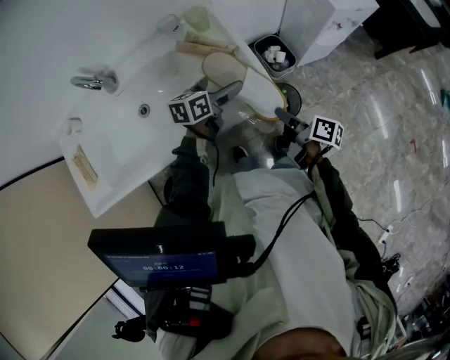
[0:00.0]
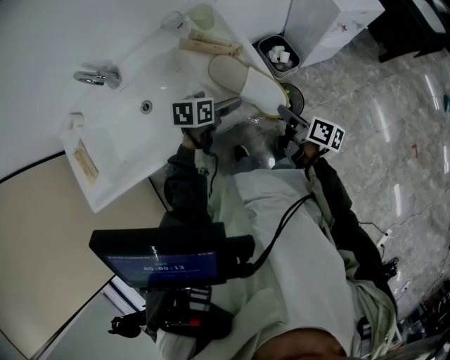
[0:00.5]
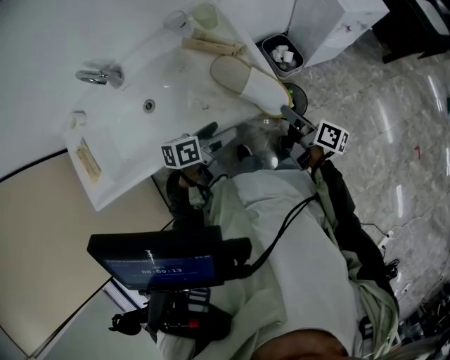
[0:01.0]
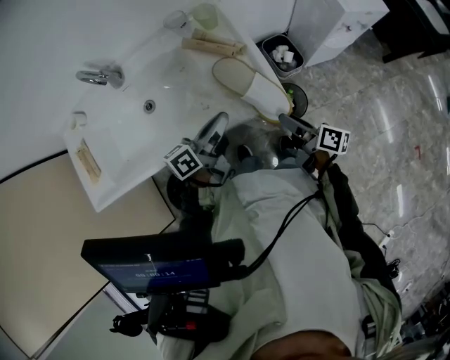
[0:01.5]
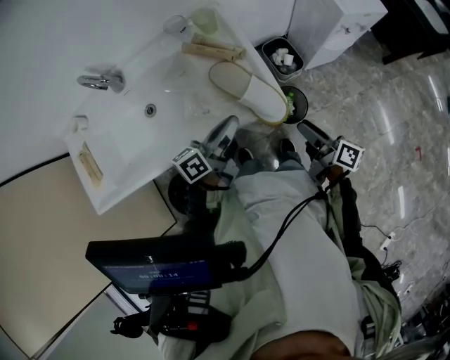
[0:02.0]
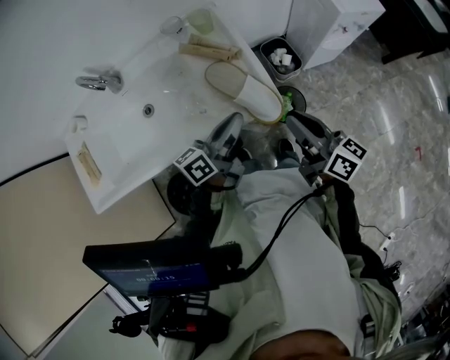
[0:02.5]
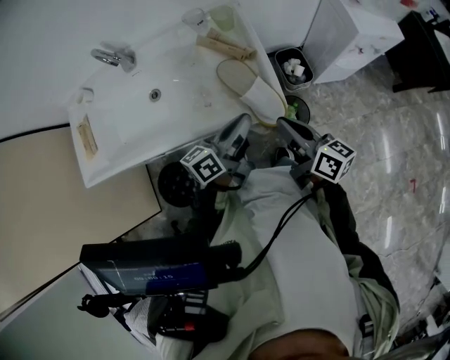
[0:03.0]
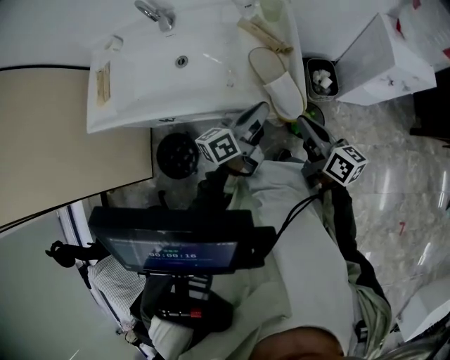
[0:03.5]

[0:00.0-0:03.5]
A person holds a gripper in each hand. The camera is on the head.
0:00.0 to 0:02.0: The right gripper changes place by about 5 cm, and opens its fingers. The left gripper moves backward and upward, about 15 cm, rotates some 30 degrees, and closes up.
0:02.0 to 0:03.5: The left gripper swivels approximately 20 degrees, while the right gripper travels upward and to the left by roughly 10 cm, turns by about 30 degrees, and closes its fingers.

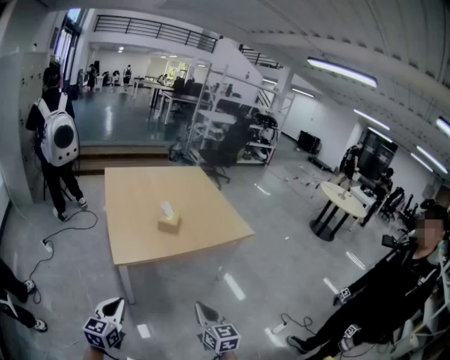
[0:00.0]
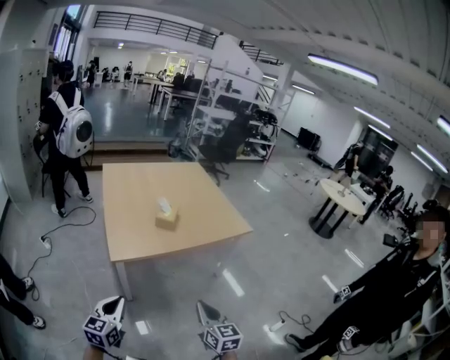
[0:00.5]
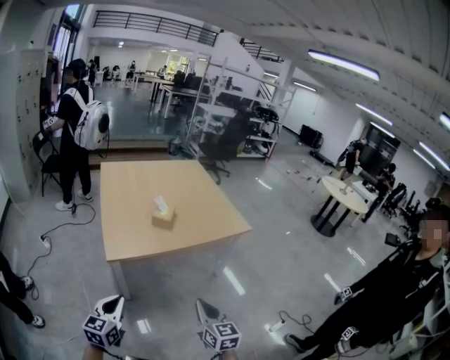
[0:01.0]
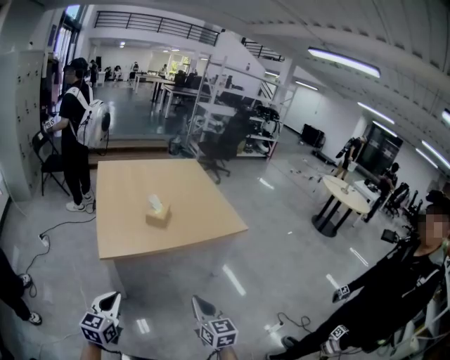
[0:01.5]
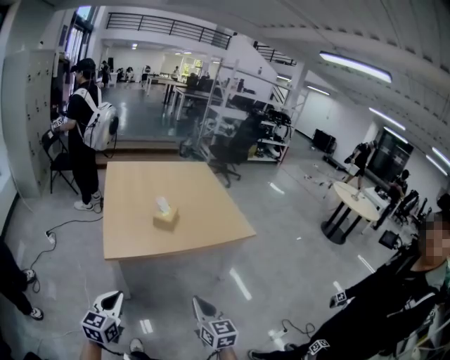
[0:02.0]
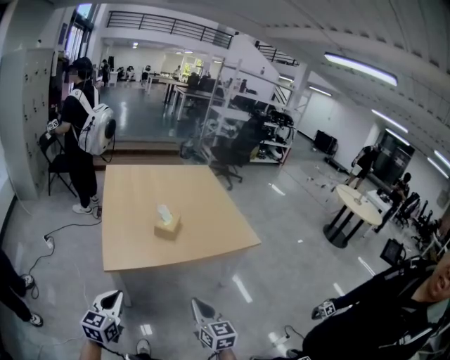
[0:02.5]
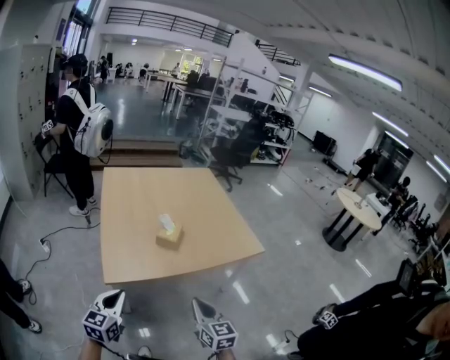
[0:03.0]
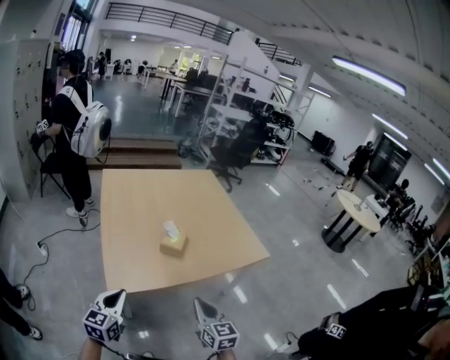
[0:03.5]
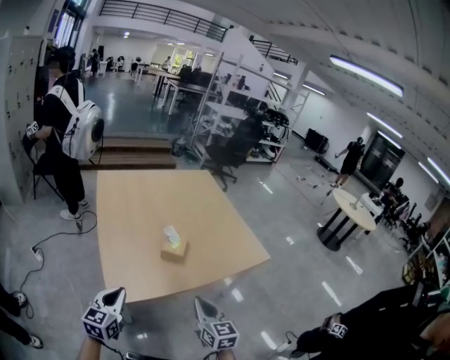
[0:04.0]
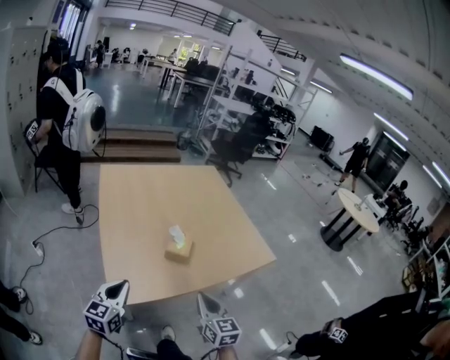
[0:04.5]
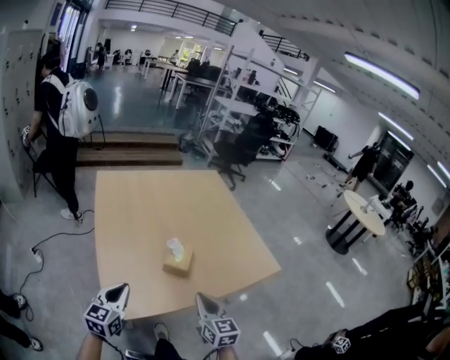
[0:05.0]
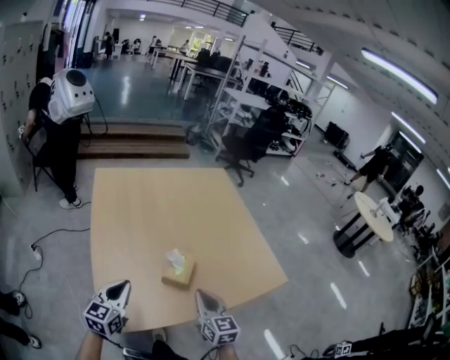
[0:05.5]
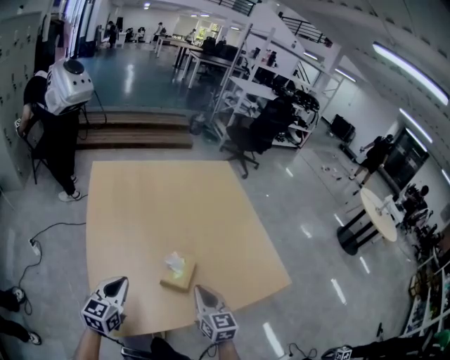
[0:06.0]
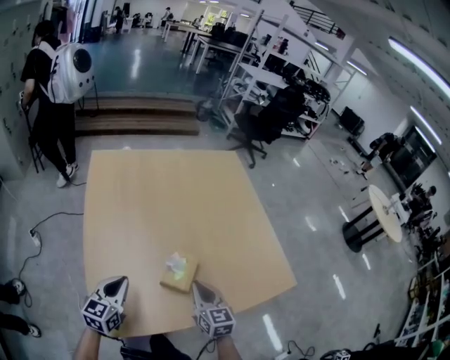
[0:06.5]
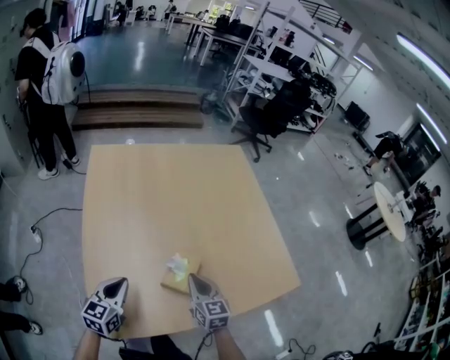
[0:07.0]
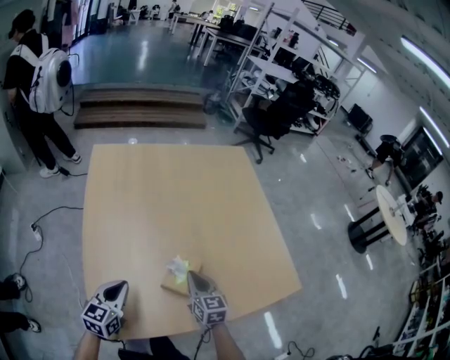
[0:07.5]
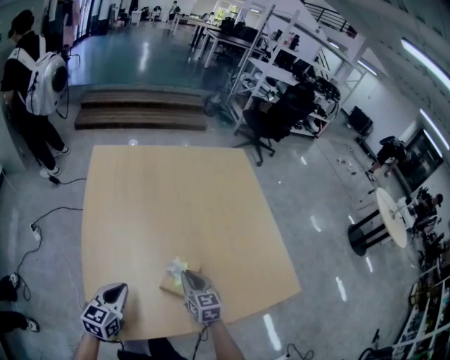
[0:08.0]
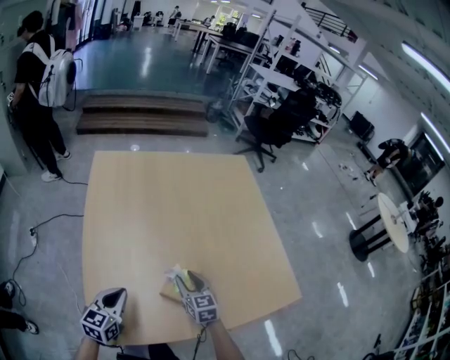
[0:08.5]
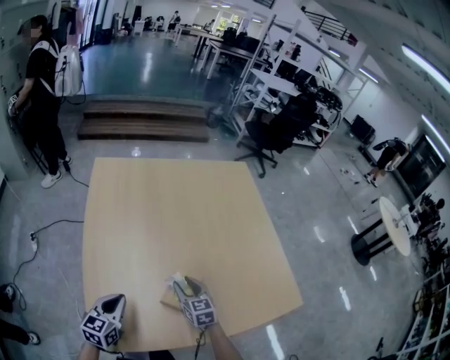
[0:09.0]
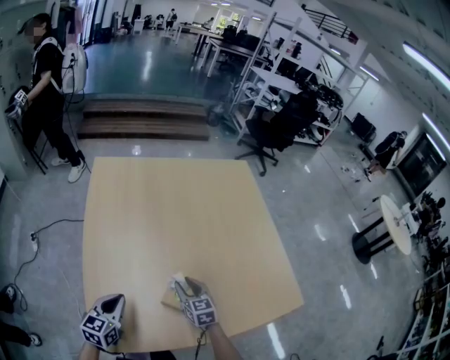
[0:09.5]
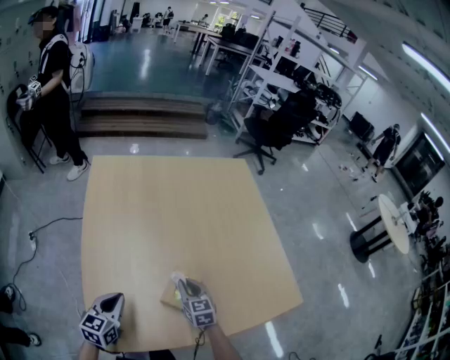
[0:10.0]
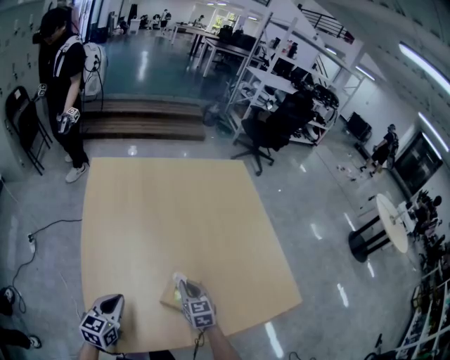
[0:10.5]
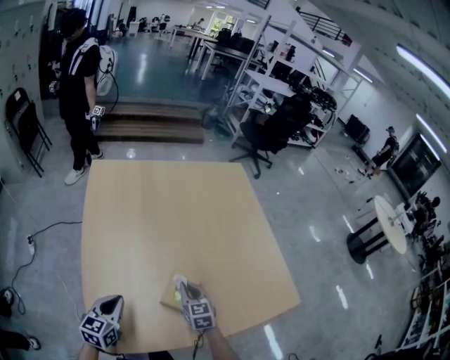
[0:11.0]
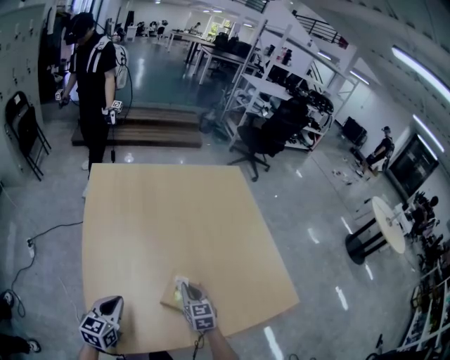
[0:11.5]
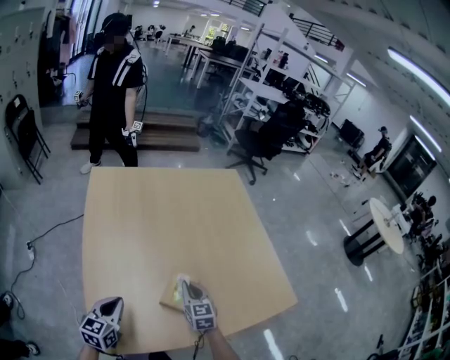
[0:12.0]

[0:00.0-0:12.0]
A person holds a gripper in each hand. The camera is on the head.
0:00.0 to 0:02.0: The two grippers go roughly 5 cm to the right.
0:02.0 to 0:04.0: The left gripper heads forward, covering about 25 cm. Meanwhile the right gripper shifts some 25 cm forward and to the left.
0:04.0 to 0:06.0: Both grippers move forward, about 25 cm.
0:06.0 to 0:08.0: The left gripper heads downward, covering some 5 cm, while the right gripper is displaced downward and forward by about 15 cm.
0:08.0 to 0:10.0: The right gripper opens and closes again.
0:10.0 to 0:12.0: The grippers stay close to where they were, moving slightly.

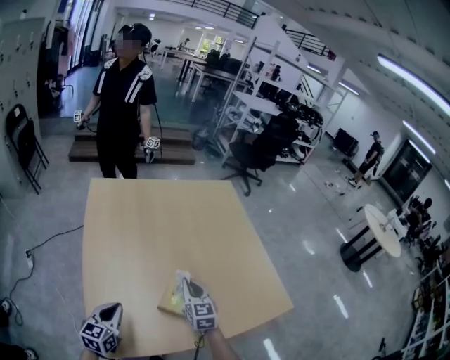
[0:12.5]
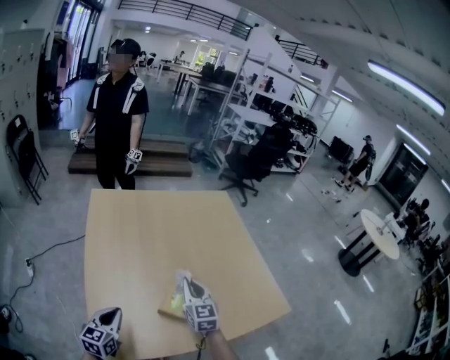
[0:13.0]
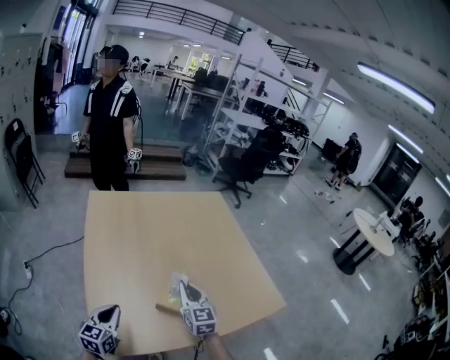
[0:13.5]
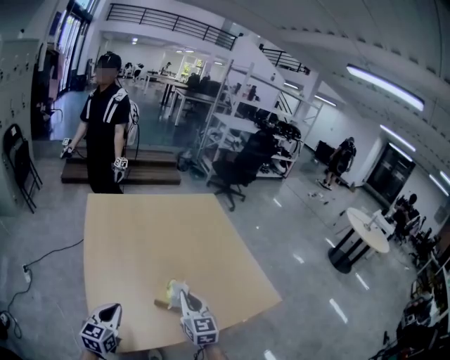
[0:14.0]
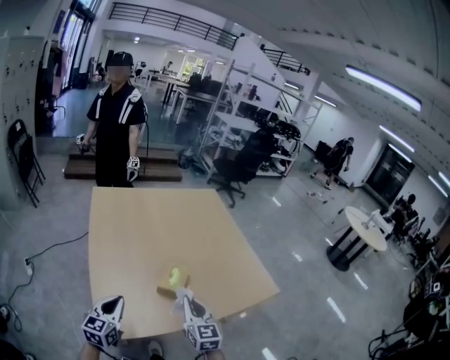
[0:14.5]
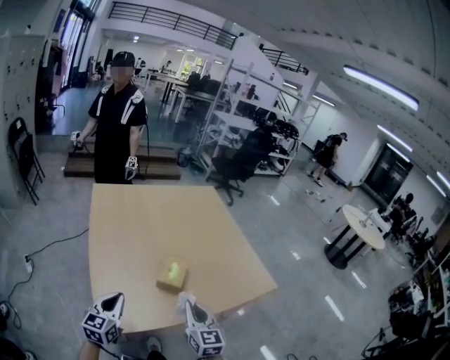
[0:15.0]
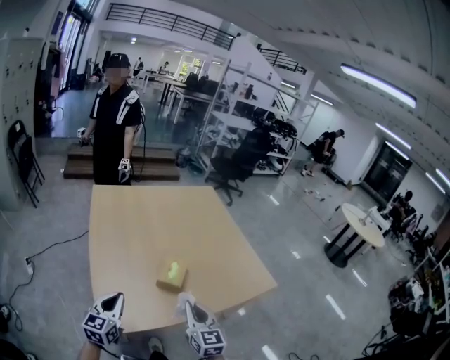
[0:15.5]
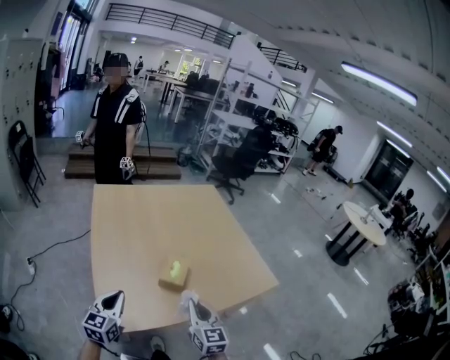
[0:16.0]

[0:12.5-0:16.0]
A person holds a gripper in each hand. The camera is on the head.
0:12.5 to 0:14.5: The right gripper moves backward, some 20 cm. Meanwhile the left gripper moves backward and upward, approximately 10 cm.
0:14.5 to 0:16.0: The right gripper shifts by about 5 cm.

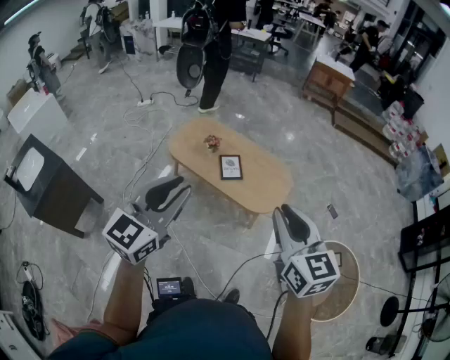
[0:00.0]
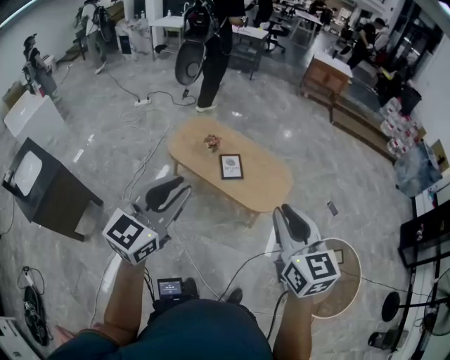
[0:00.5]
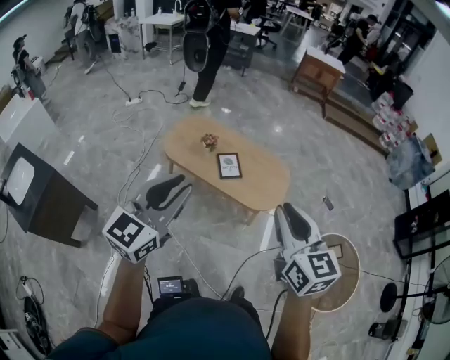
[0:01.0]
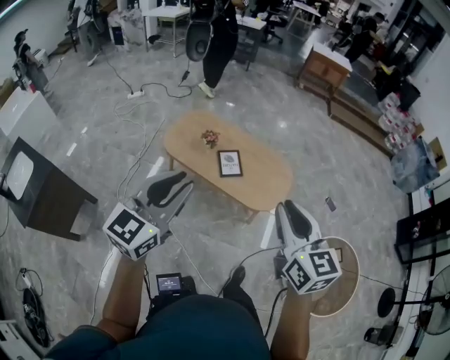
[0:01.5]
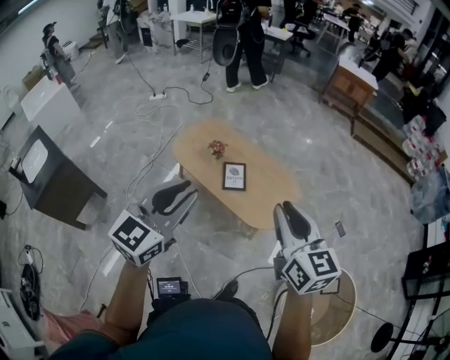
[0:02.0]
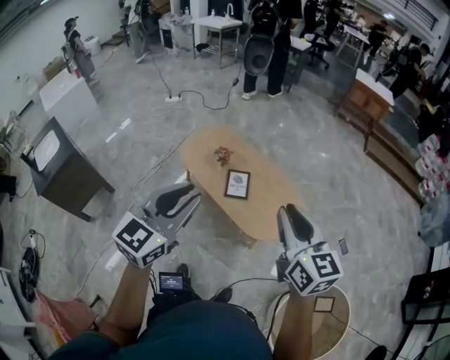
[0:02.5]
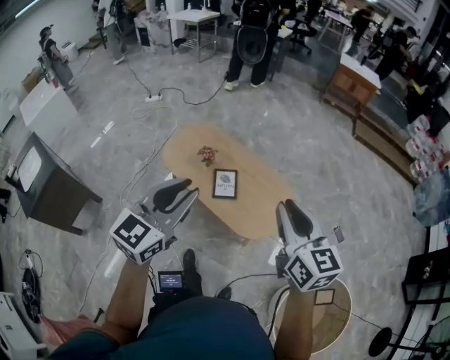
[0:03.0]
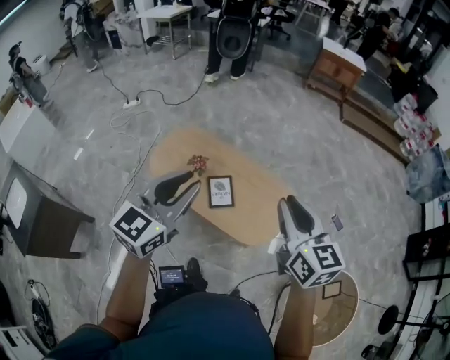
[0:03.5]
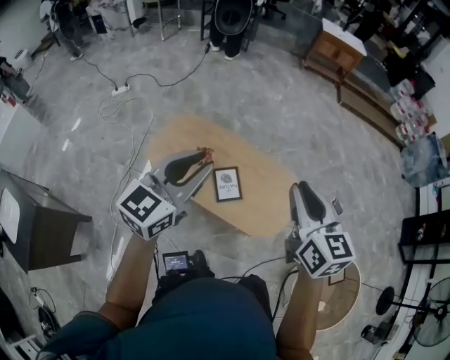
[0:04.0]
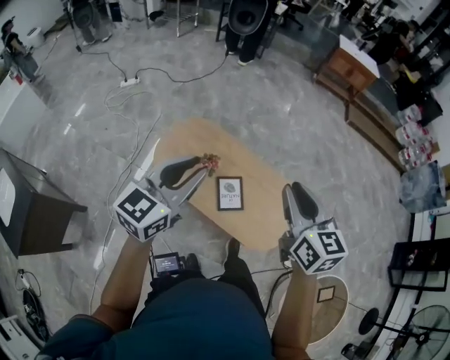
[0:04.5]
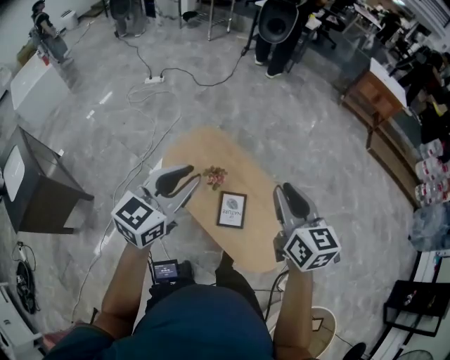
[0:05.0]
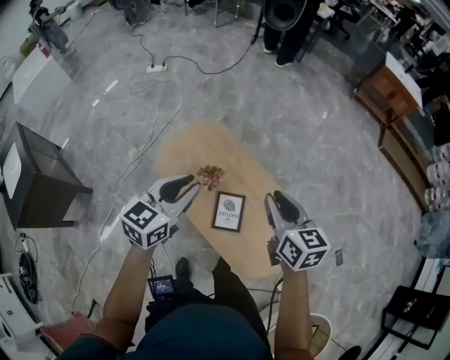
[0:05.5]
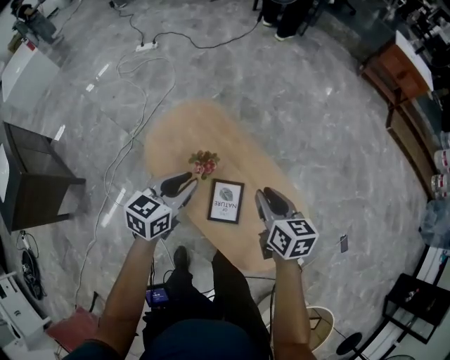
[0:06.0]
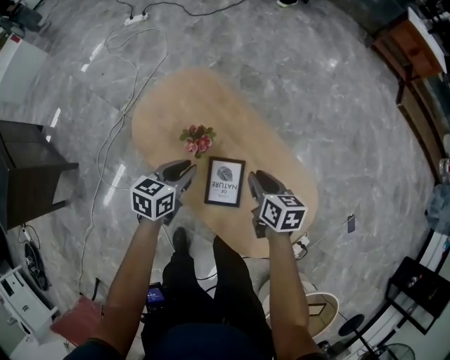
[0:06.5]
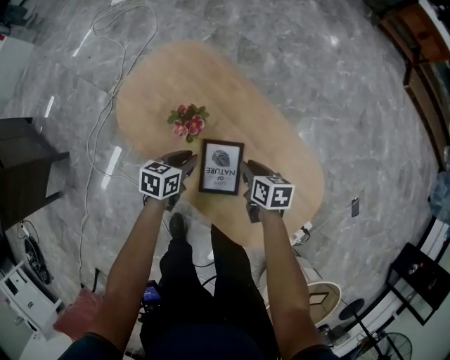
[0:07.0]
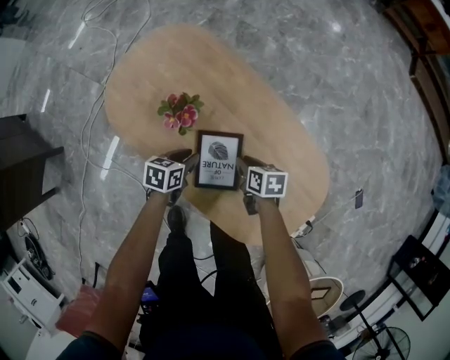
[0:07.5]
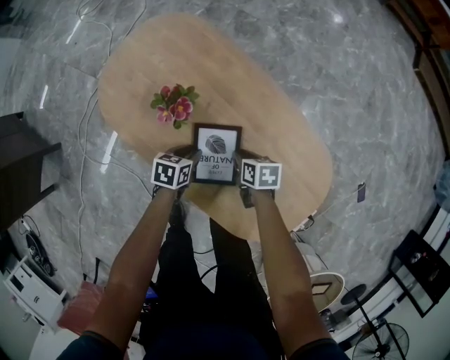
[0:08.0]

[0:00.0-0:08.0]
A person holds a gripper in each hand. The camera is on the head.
0:00.0 to 0:02.0: The right gripper shifts roughly 15 cm forward; the left gripper is displaced forward and to the right by approximately 15 cm.
0:02.0 to 0:04.0: Both grippers move forward, approximately 30 cm.
0:04.0 to 0:06.0: Both grippers travel together downward and forward, about 40 cm. The right gripper turns by approximately 30 degrees. The left gripper rotates some 40 degrees.
0:06.0 to 0:08.0: The two grippers go some 40 cm downward. The left gripper points its fingers about 30 degrees further downward. Meanwhile the right gripper changes its angle by roughly 30 degrees.
